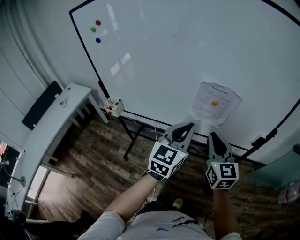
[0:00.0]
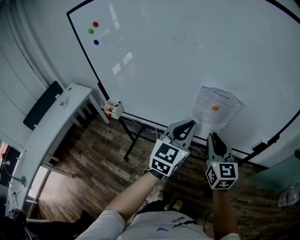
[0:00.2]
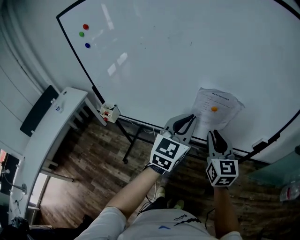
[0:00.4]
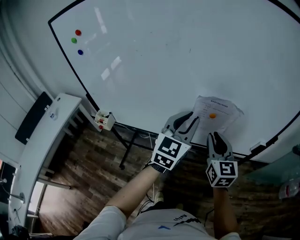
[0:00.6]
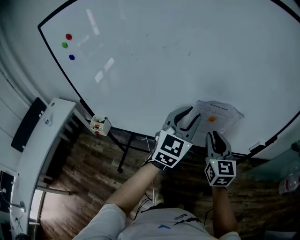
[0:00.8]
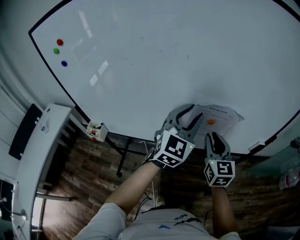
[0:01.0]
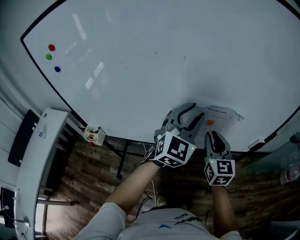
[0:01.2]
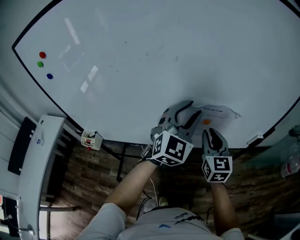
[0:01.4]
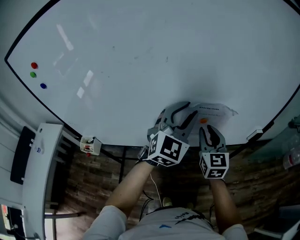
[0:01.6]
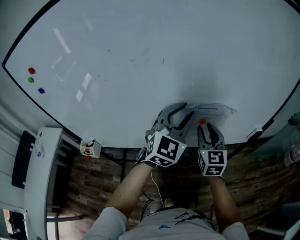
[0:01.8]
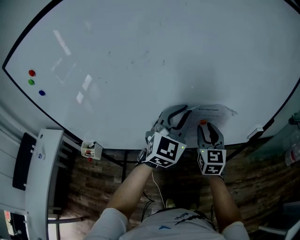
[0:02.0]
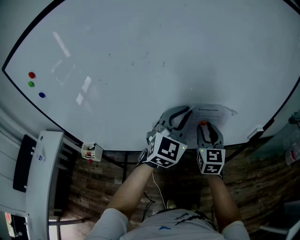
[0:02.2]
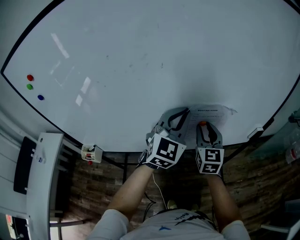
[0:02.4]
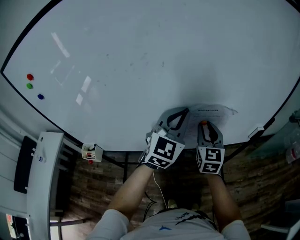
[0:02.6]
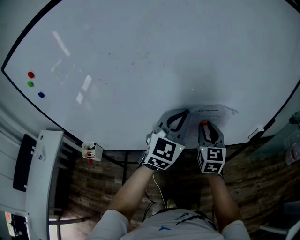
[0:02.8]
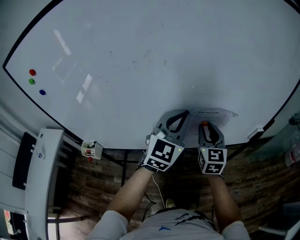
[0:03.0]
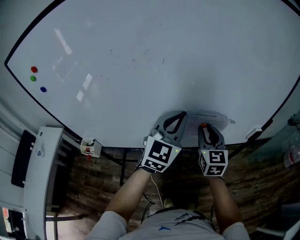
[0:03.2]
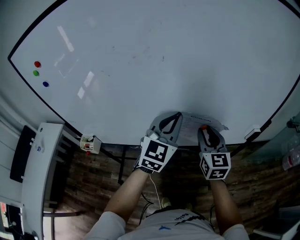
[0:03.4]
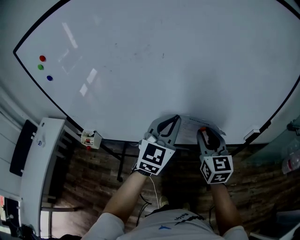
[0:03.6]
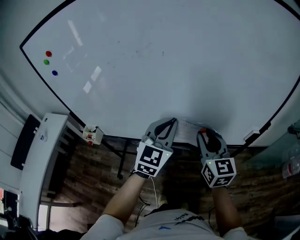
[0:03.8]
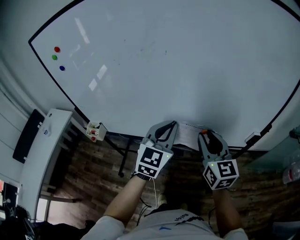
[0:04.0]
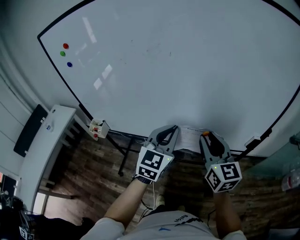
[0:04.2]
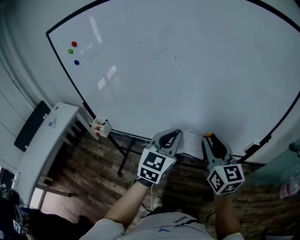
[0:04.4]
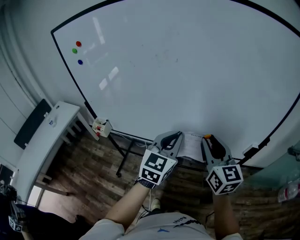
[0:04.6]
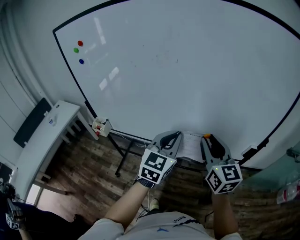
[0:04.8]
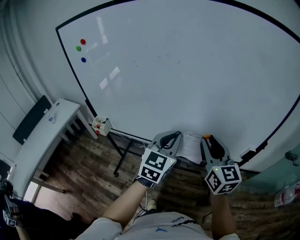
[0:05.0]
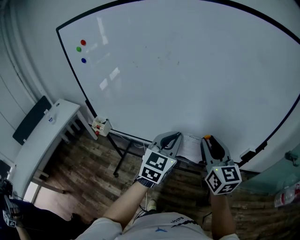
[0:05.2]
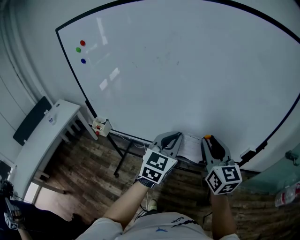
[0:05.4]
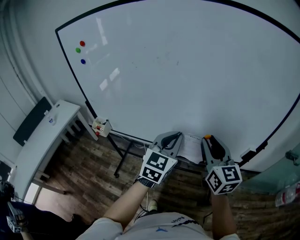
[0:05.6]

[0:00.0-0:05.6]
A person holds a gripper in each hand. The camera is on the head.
0:00.0 to 0:01.4: Both grippers move forward, roughly 15 cm. The left gripper swivels some 30 degrees, and opens.
0:01.4 to 0:02.8: The left gripper closes.
0:02.8 to 0:04.2: The left gripper heads backward, covering roughly 10 cm, and turns by some 20 degrees. Meanwhile the right gripper heads backward and upward, covering about 15 cm, and swivels about 30 degrees.
0:04.2 to 0:05.6: The grippers move only a little.

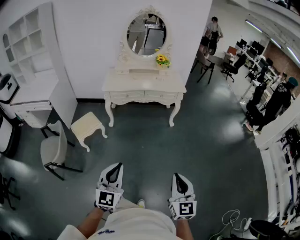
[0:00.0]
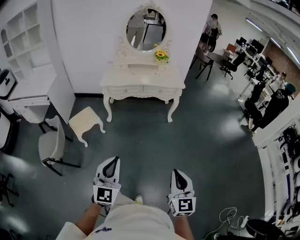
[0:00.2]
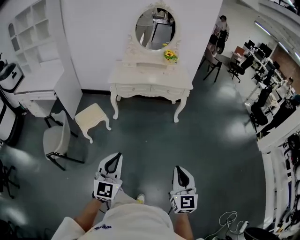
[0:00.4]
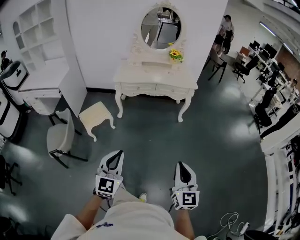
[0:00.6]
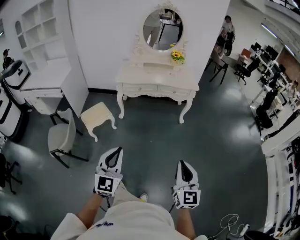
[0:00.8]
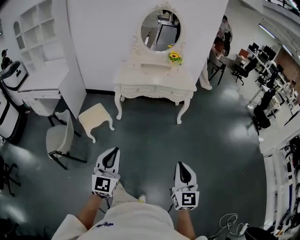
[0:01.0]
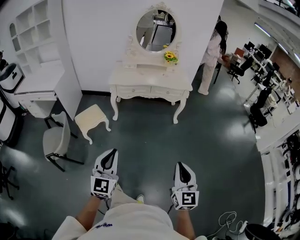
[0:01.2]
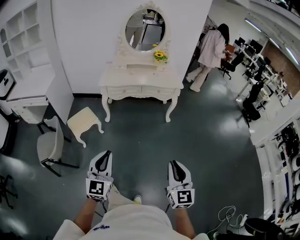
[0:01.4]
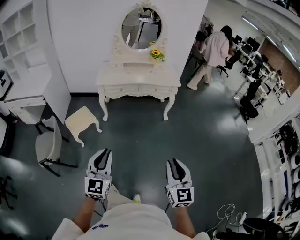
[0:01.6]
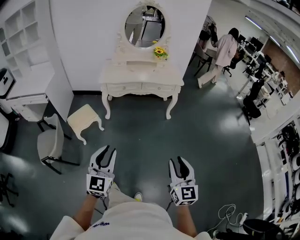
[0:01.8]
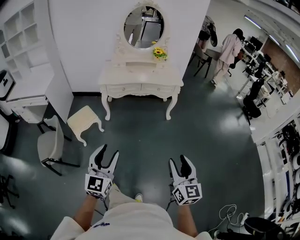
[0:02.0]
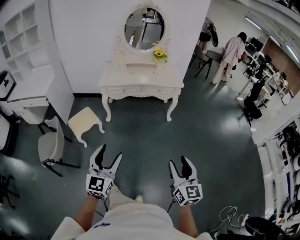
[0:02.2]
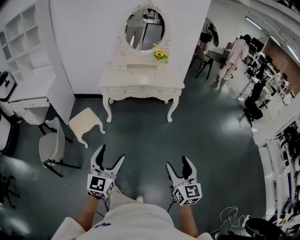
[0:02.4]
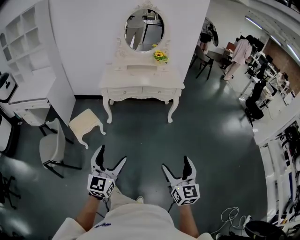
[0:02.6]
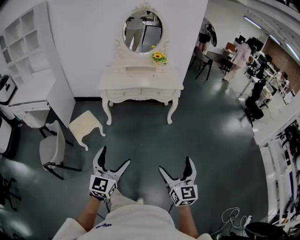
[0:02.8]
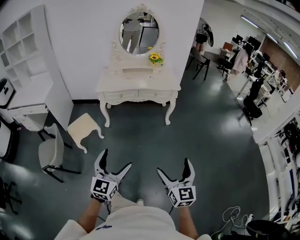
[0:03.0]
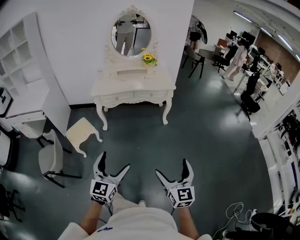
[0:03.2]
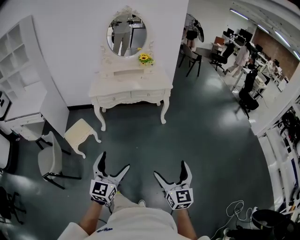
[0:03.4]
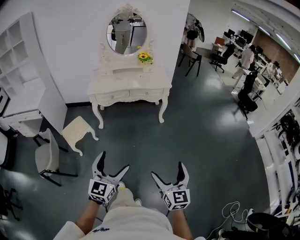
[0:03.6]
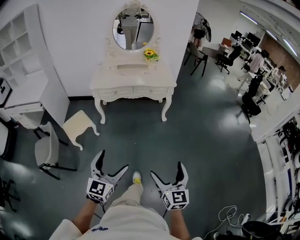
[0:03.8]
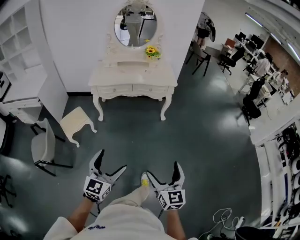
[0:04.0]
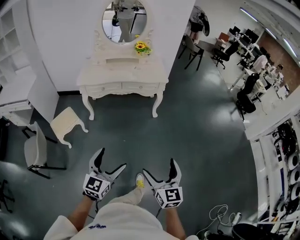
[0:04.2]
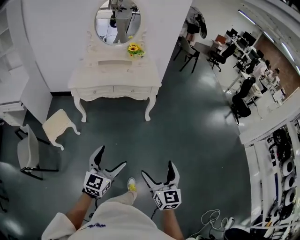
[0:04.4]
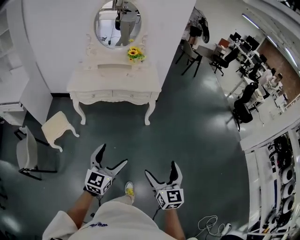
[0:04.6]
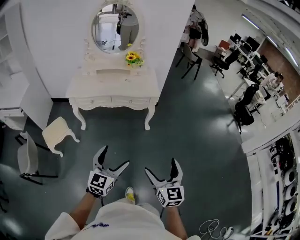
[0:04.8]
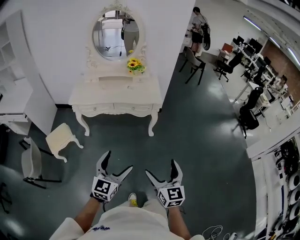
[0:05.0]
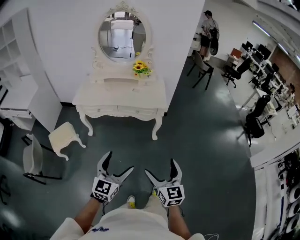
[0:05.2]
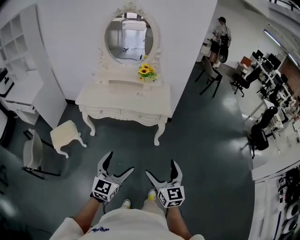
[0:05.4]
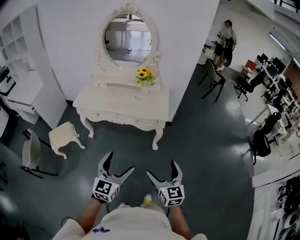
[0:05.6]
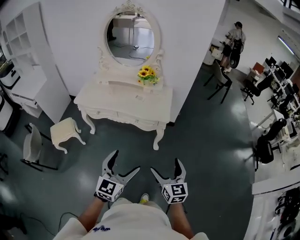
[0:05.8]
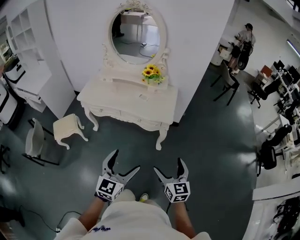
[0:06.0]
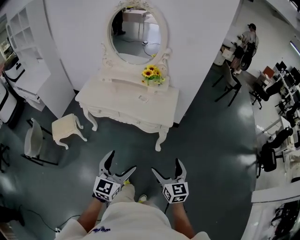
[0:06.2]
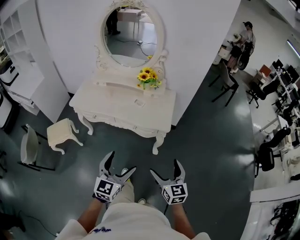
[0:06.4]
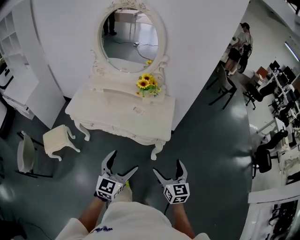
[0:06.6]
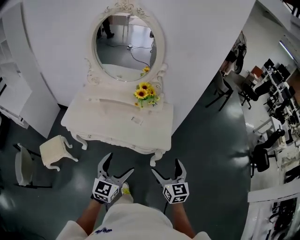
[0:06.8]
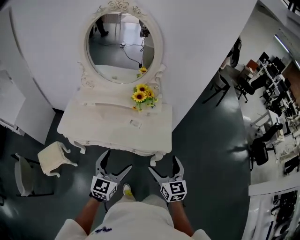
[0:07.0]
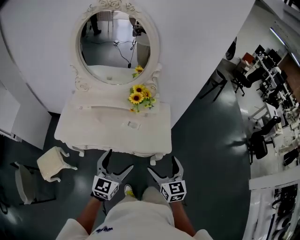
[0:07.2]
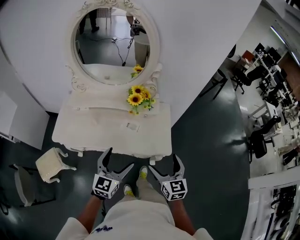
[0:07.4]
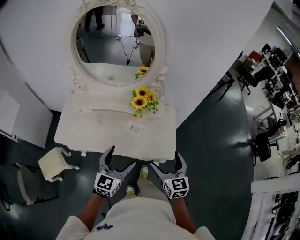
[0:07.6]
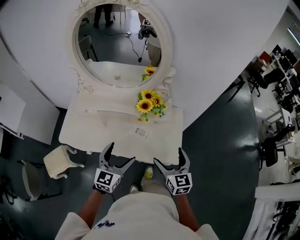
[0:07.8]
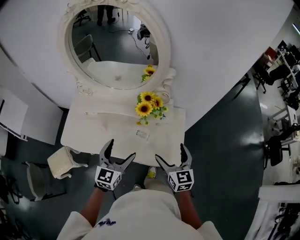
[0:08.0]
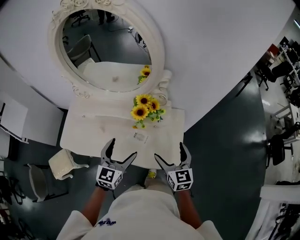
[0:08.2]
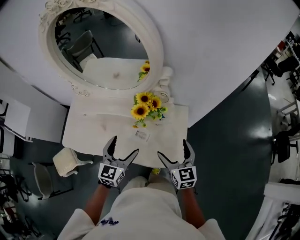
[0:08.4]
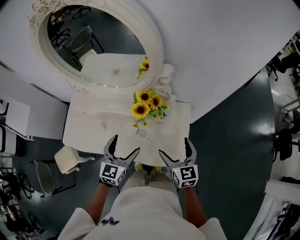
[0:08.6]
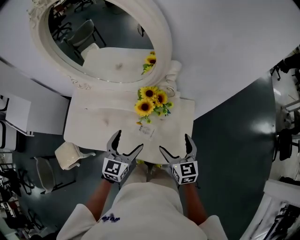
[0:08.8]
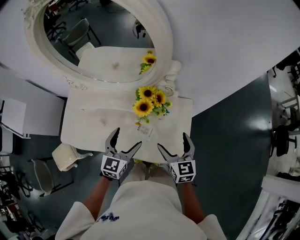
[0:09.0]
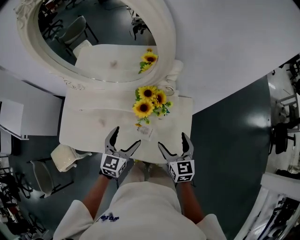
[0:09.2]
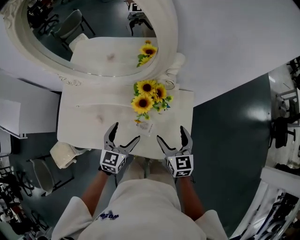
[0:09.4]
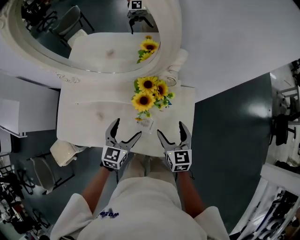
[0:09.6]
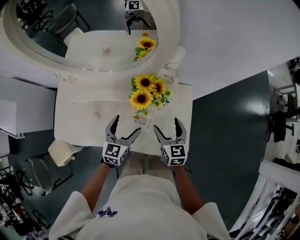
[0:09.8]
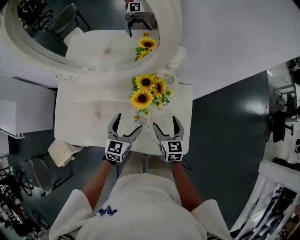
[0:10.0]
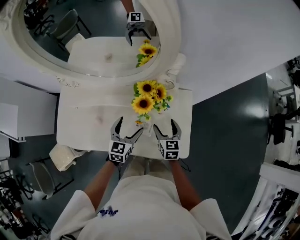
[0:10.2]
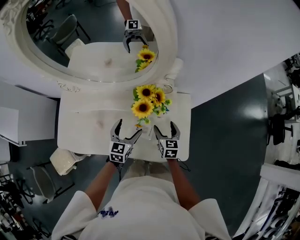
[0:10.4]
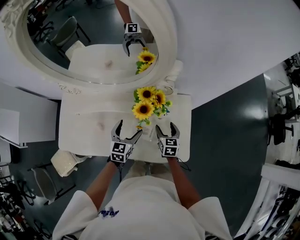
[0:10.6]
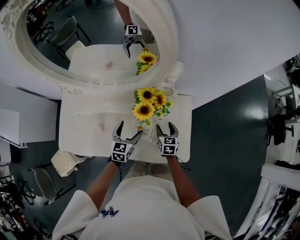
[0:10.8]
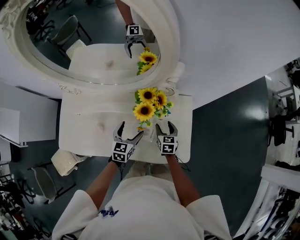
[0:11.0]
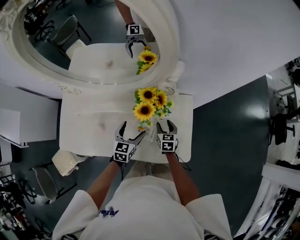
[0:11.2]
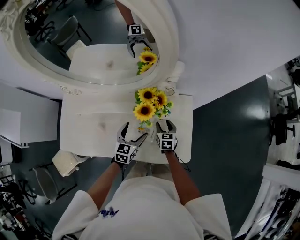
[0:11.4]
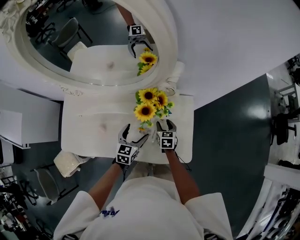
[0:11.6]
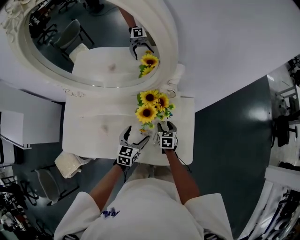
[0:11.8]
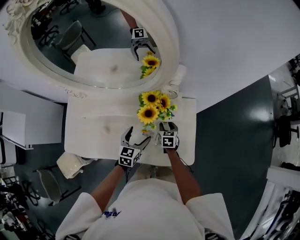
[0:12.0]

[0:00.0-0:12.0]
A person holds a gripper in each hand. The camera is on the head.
0:00.0 to 0:01.6: The left gripper moves some 5 cm.
0:01.6 to 0:03.0: The right gripper opens its fingers; the left gripper goes about 5 cm to the right, and opens.
0:03.0 to 0:04.4: Both grippers travel together forward and to the right, some 20 cm.
0:04.4 to 0:06.0: Both grippers travel together forward and to the right, about 40 cm. The right gripper turns by approximately 20 degrees.
0:06.0 to 0:07.6: The grippers both shift forward by about 40 cm.
0:07.6 to 0:09.0: Both grippers move forward, roughly 20 cm.
0:09.0 to 0:10.4: Both grippers move downward and forward, some 15 cm.
0:10.4 to 0:12.0: The right gripper is displaced downward by about 10 cm, and closes up.

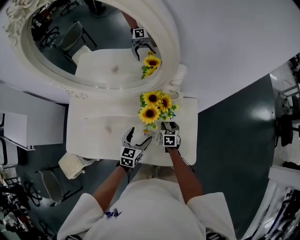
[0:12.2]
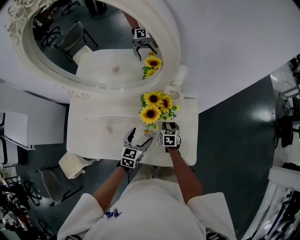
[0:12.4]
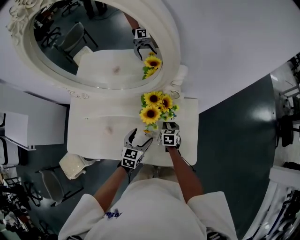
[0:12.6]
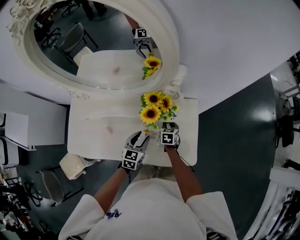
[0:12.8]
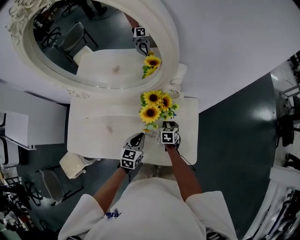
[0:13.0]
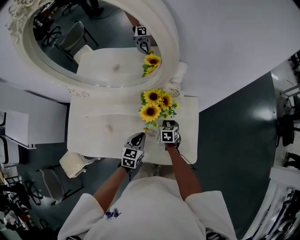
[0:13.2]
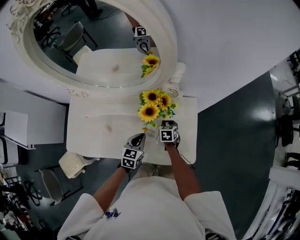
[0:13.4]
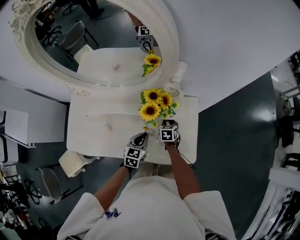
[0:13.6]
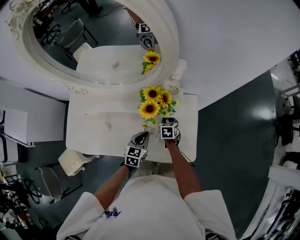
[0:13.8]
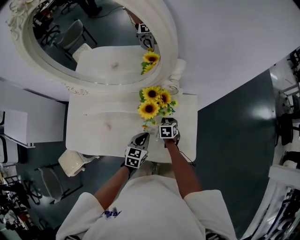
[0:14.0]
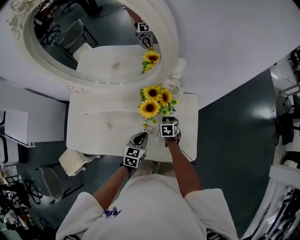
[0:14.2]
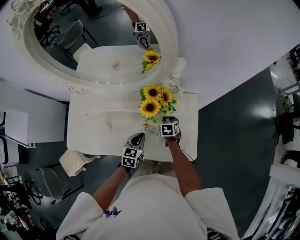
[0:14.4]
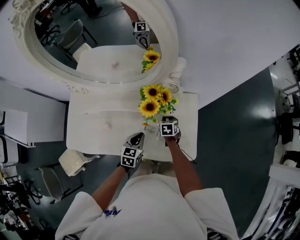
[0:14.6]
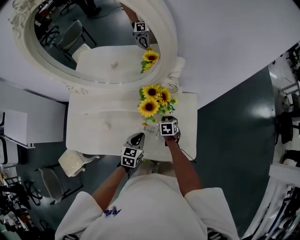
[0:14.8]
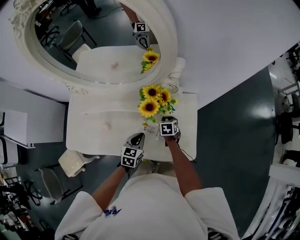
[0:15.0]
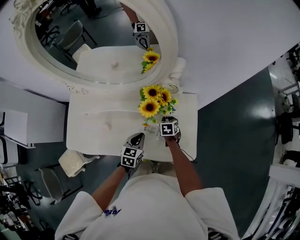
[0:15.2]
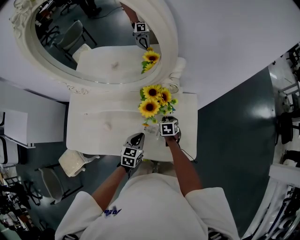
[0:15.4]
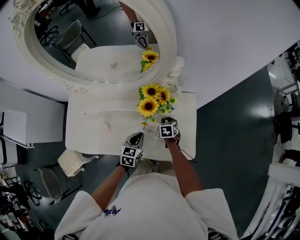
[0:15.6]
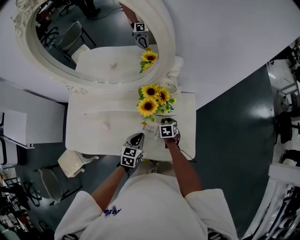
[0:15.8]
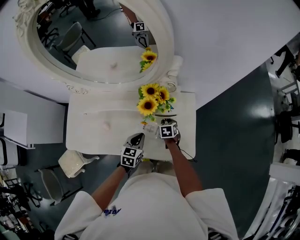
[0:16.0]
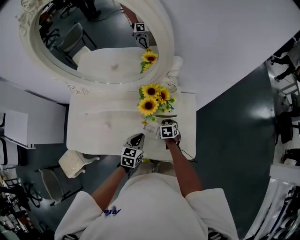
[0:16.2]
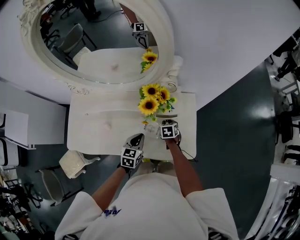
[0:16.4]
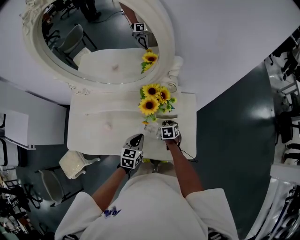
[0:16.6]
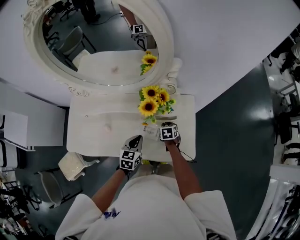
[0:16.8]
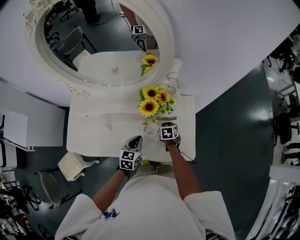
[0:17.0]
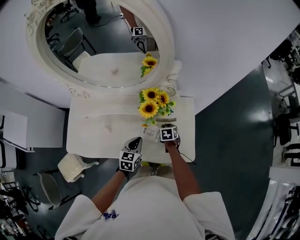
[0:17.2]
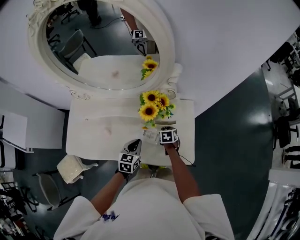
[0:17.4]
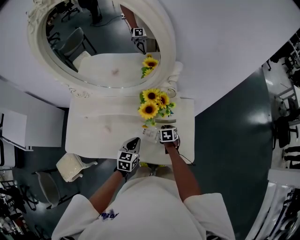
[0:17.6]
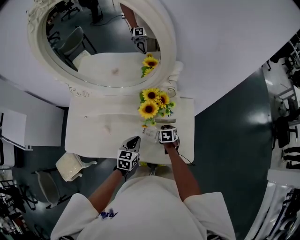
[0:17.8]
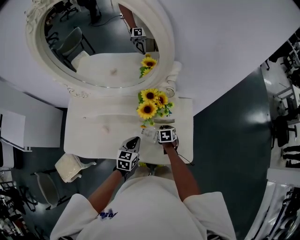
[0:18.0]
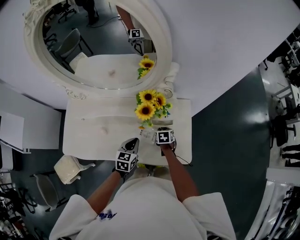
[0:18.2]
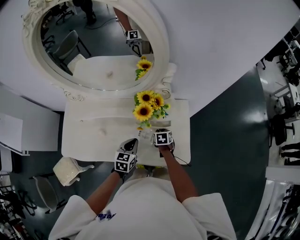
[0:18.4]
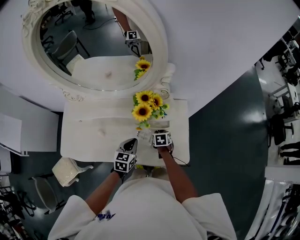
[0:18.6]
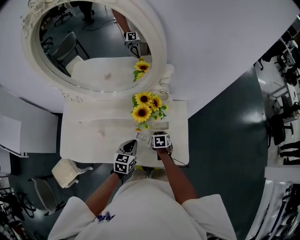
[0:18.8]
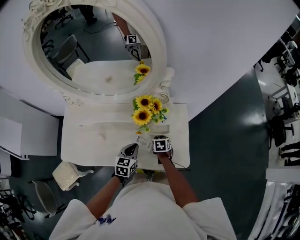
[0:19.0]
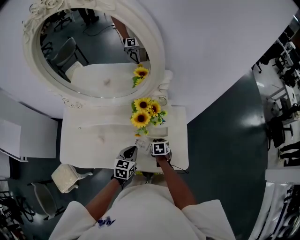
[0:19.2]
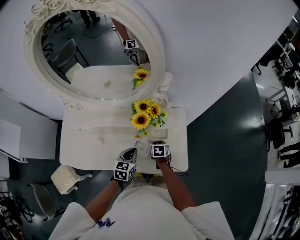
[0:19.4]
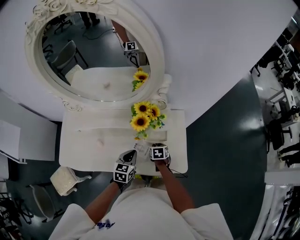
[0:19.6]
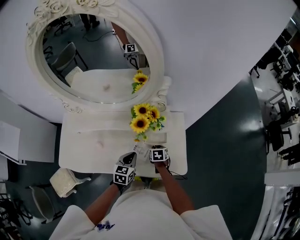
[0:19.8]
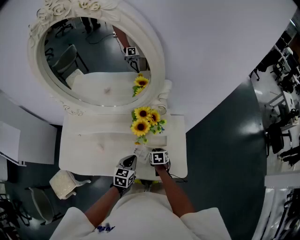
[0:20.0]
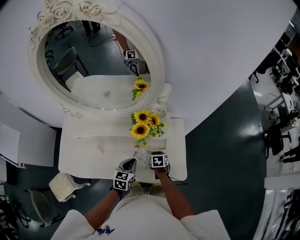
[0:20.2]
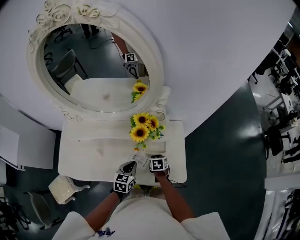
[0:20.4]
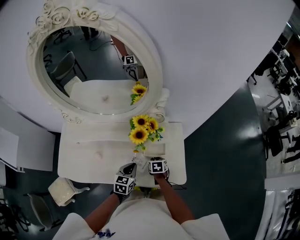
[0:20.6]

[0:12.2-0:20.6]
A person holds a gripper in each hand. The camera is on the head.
0:12.2 to 0:13.6: The left gripper closes up.
0:13.6 to 0:17.8: The grippers make only small movements.
0:17.8 to 0:20.6: The grippers move only a little.
